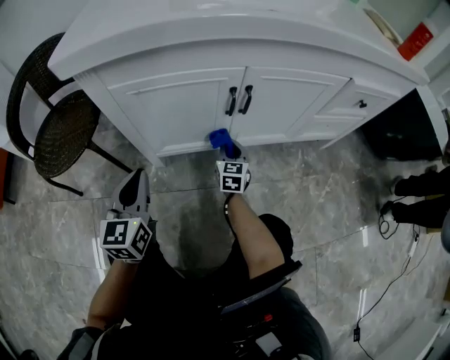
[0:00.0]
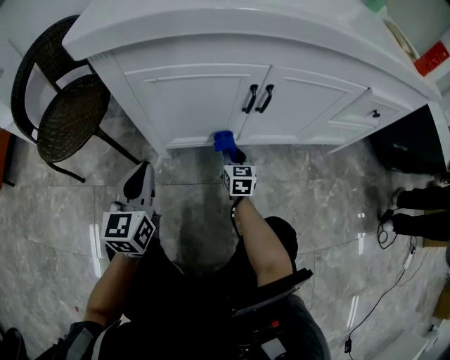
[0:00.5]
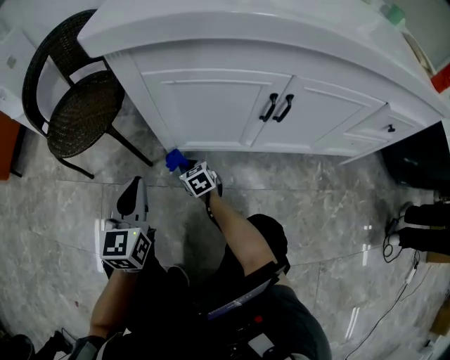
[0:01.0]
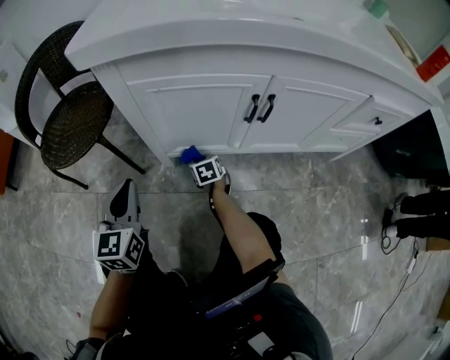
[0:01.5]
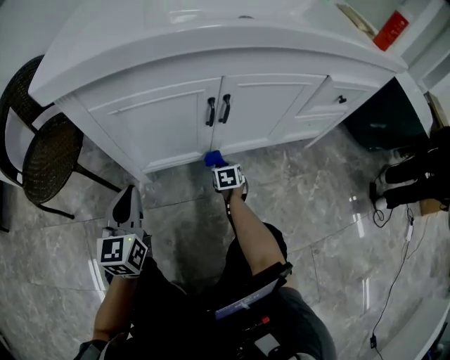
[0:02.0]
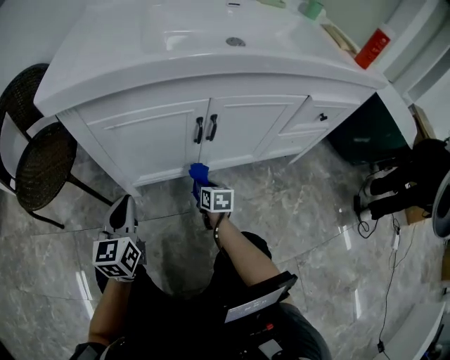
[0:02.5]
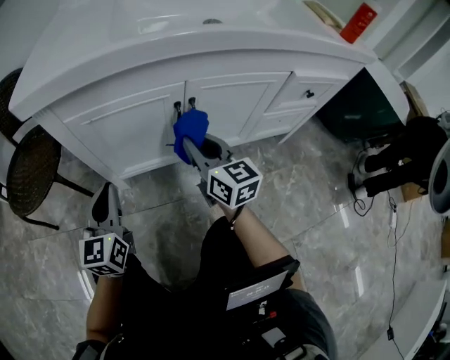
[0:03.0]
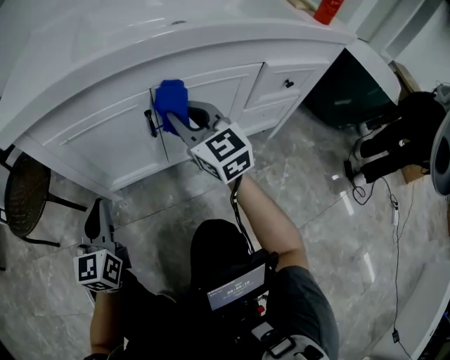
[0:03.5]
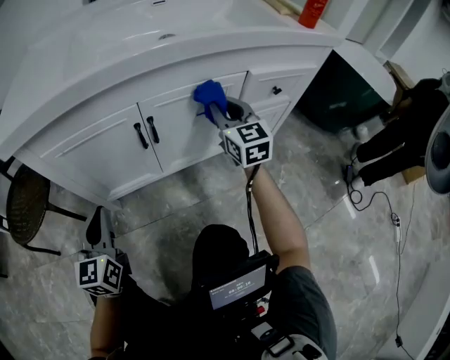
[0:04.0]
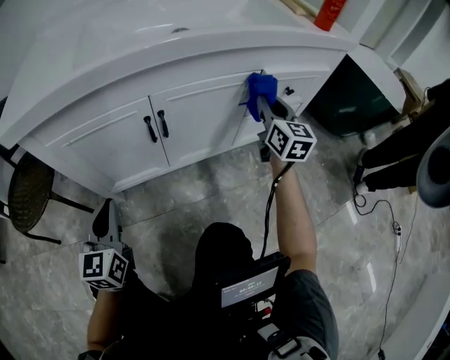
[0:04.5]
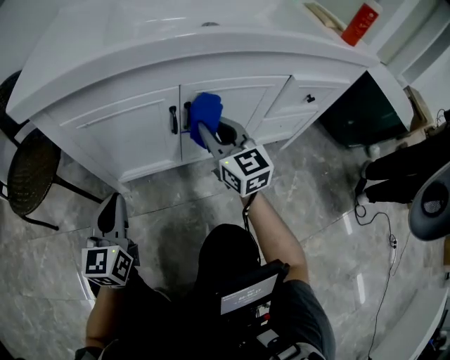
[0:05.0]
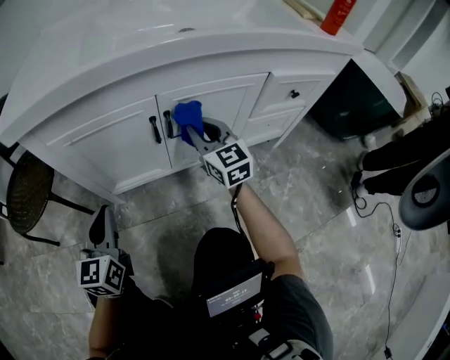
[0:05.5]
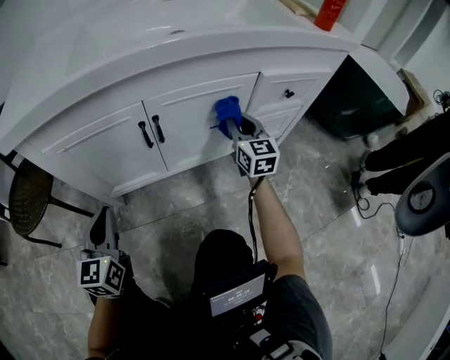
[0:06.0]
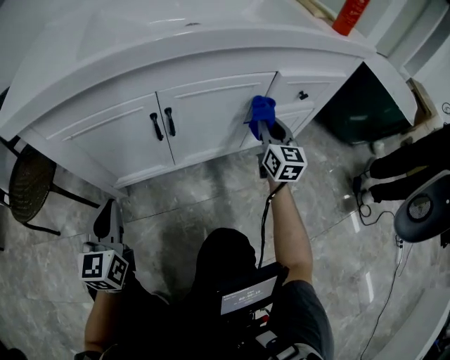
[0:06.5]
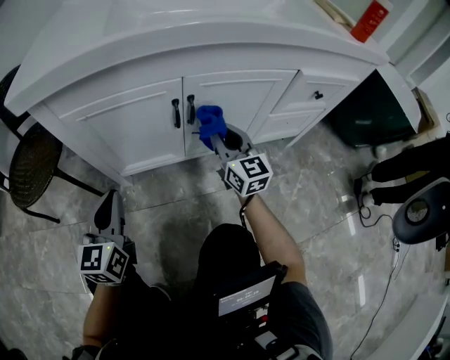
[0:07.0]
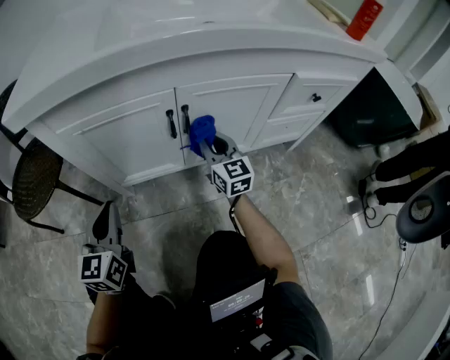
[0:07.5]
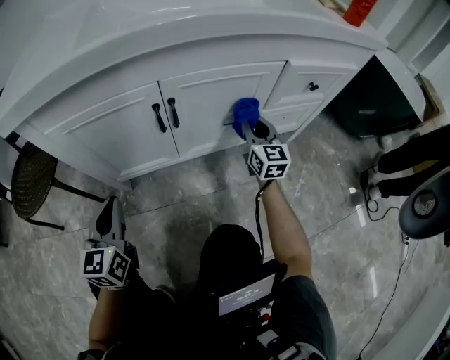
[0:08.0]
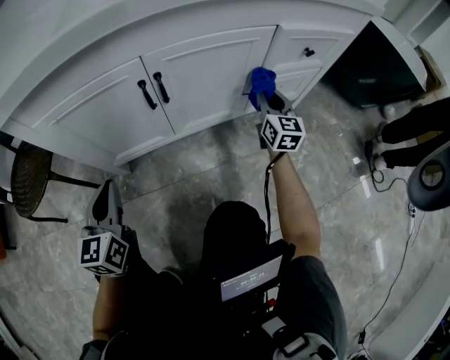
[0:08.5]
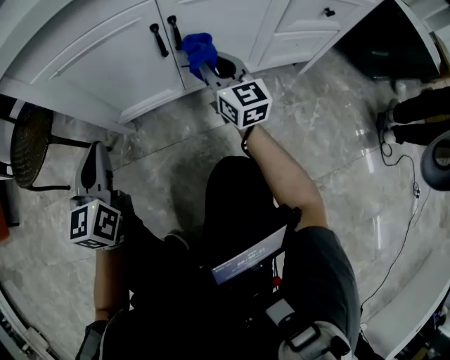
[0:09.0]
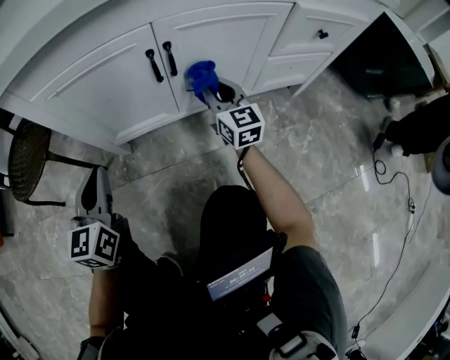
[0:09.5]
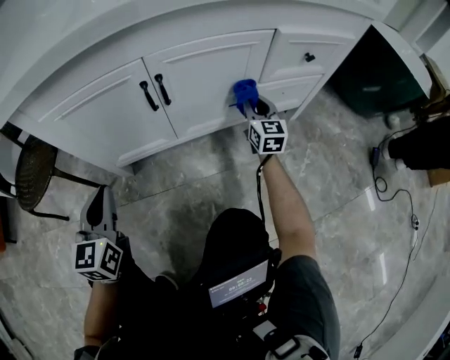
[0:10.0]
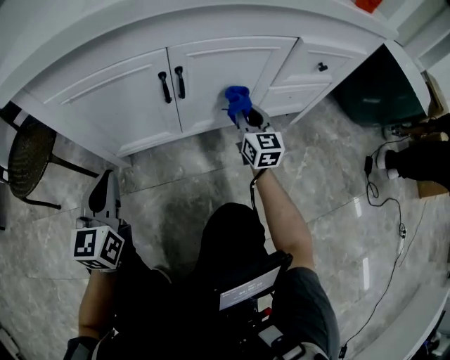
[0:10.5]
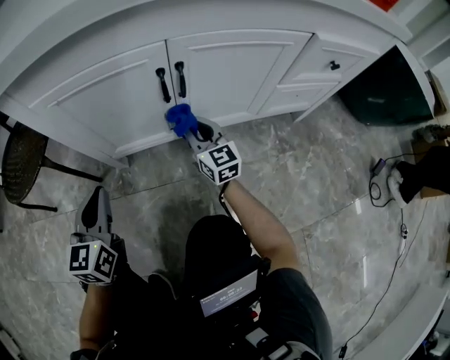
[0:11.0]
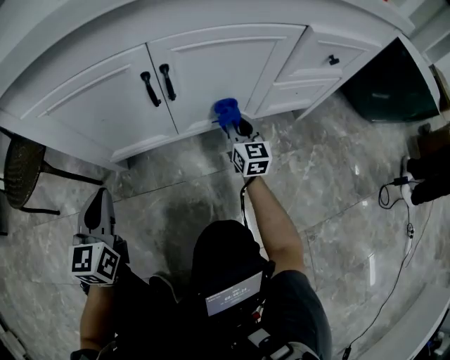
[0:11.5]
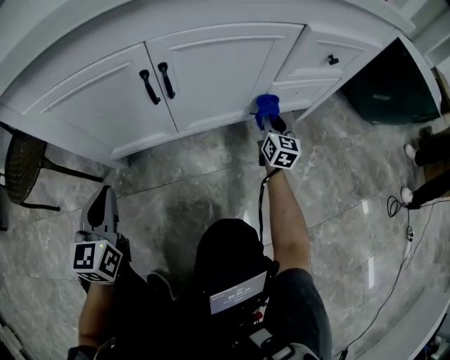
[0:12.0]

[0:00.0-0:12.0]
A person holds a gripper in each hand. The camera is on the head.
0:00.0 to 0:02.0: The right gripper goes some 10 cm downward, and changes its angle by approximately 30 degrees.
0:02.0 to 0:04.0: The right gripper goes roughly 40 cm upward and to the right, and points its fingers some 50 degrees further upward. The left gripper shifts roughly 5 cm to the right.
0:04.0 to 0:06.0: The right gripper goes left and right, roughly 25 cm each way, reversing 2 times.
0:06.0 to 0:08.0: The right gripper goes left and right, roughly 25 cm each way, reversing 2 times.
0:08.0 to 0:10.0: The right gripper swings left and right, some 25 cm each way, with 2 reversals.
0:10.0 to 0:12.0: The left gripper shifts approximately 5 cm downward; the right gripper travels downward by approximately 10 cm, and reaches some 25 cm to the left, then returns.

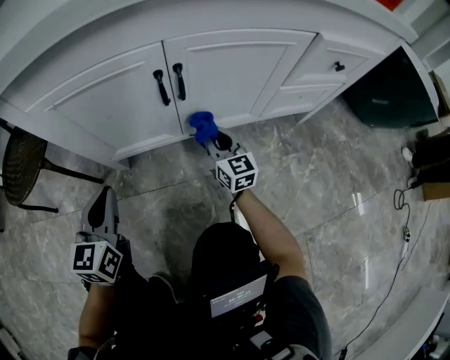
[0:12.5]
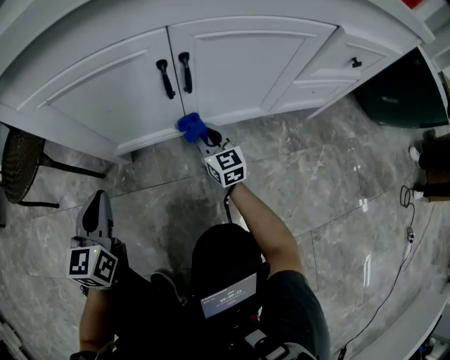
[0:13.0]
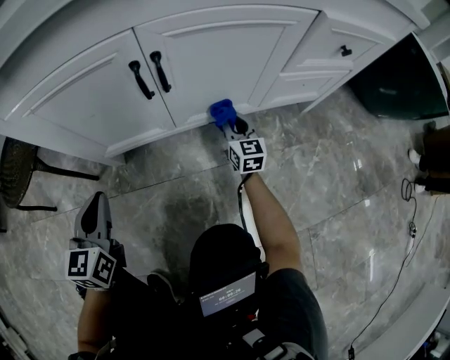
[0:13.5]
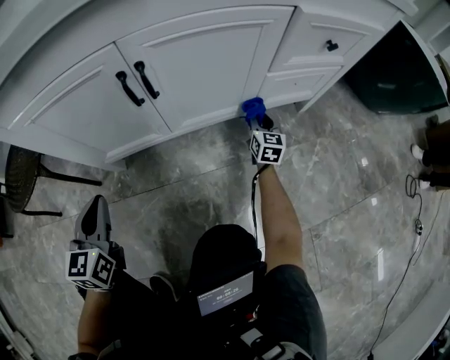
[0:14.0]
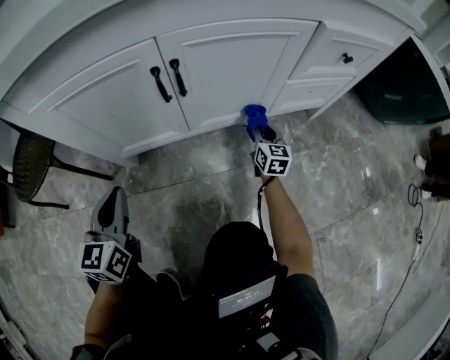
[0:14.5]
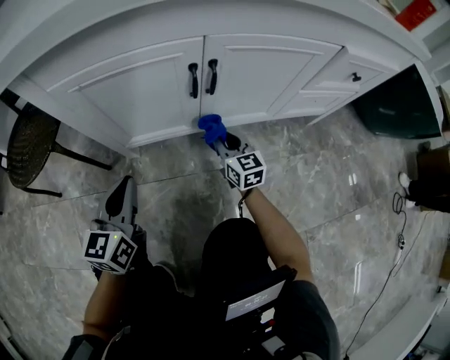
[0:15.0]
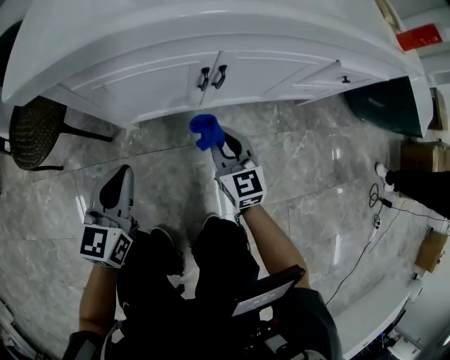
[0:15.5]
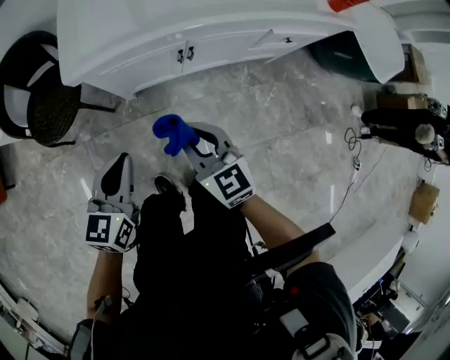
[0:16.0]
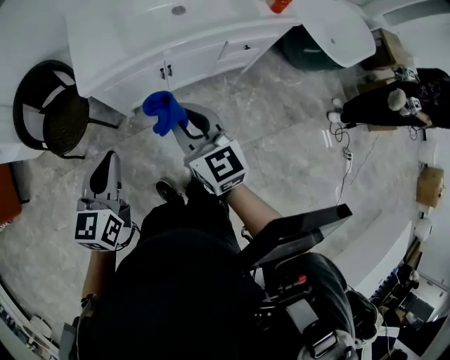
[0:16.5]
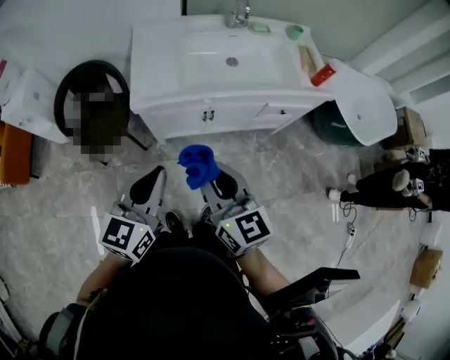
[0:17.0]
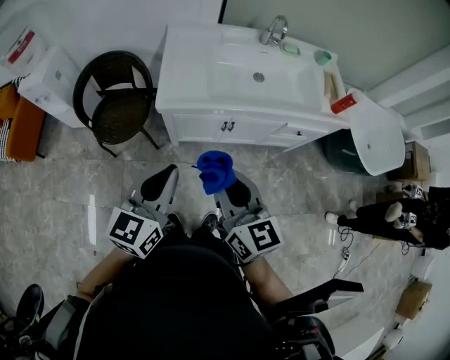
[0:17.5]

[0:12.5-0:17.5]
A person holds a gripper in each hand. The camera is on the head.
0:12.5 to 0:15.0: The right gripper moves left and right over some 25 cm, changing direction 2 times.
0:15.0 to 0:17.5: The grippers both shift upward by about 70 cm.

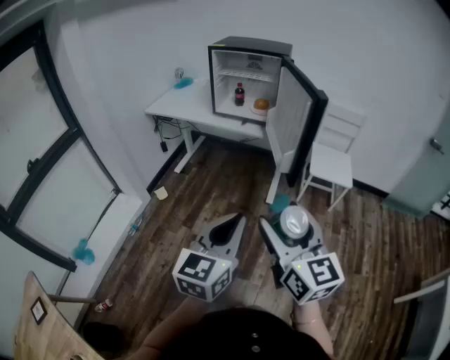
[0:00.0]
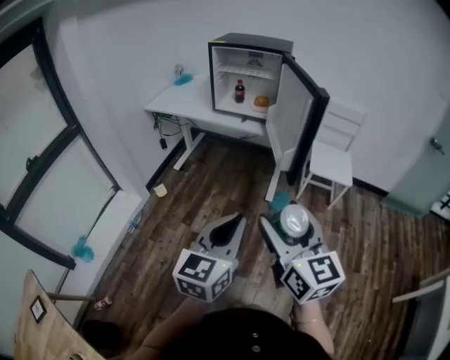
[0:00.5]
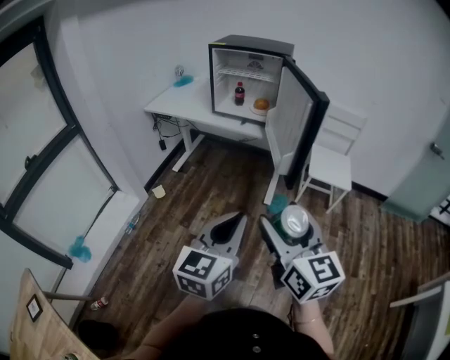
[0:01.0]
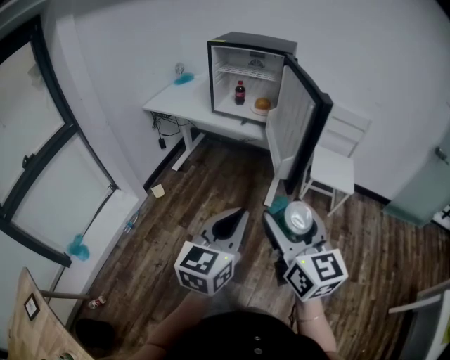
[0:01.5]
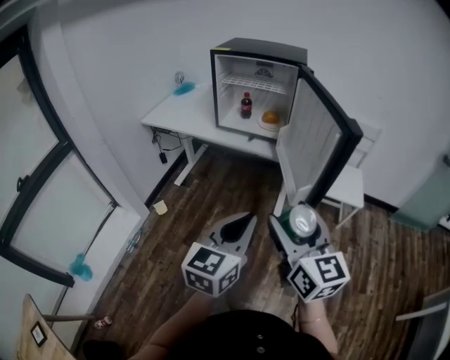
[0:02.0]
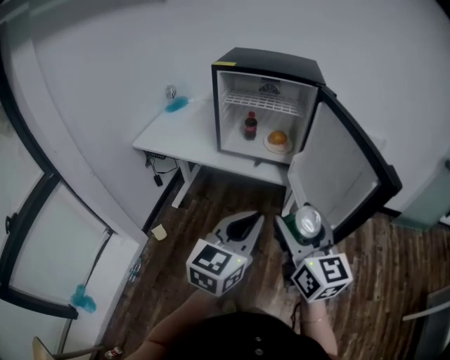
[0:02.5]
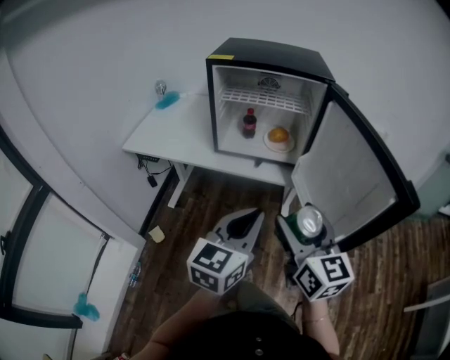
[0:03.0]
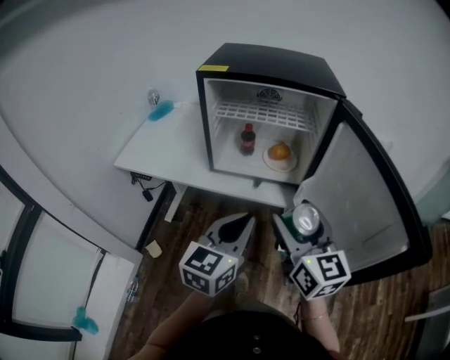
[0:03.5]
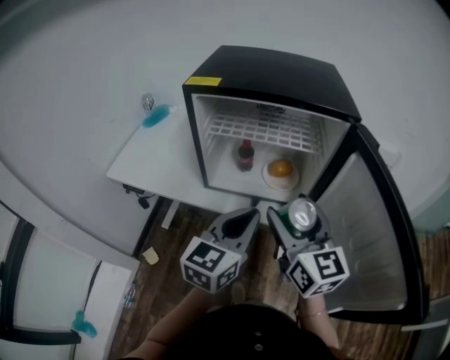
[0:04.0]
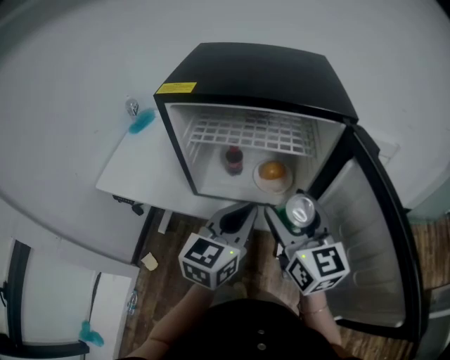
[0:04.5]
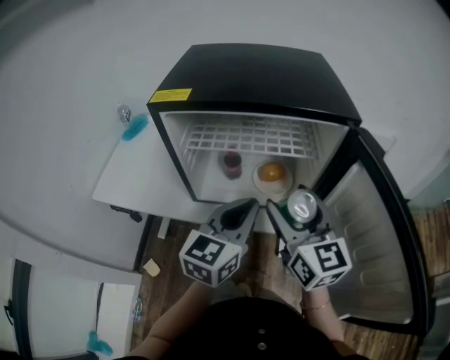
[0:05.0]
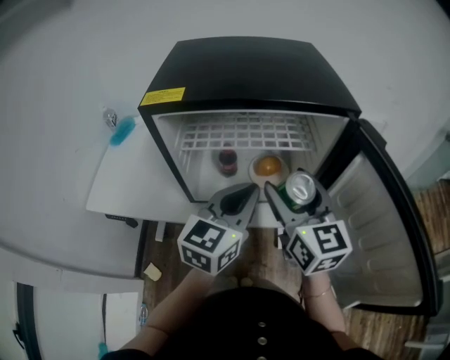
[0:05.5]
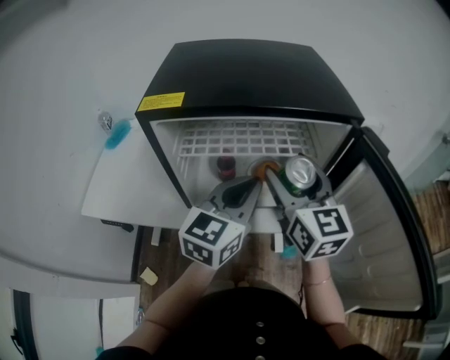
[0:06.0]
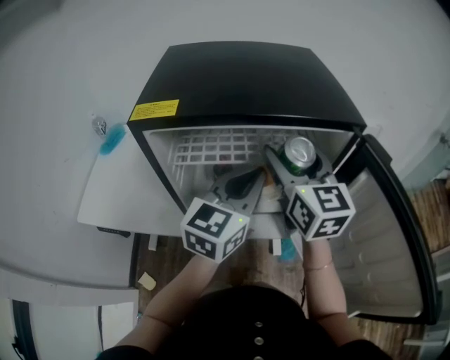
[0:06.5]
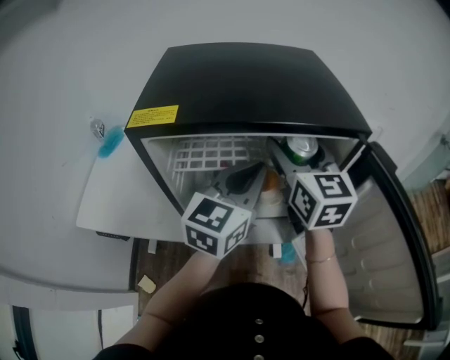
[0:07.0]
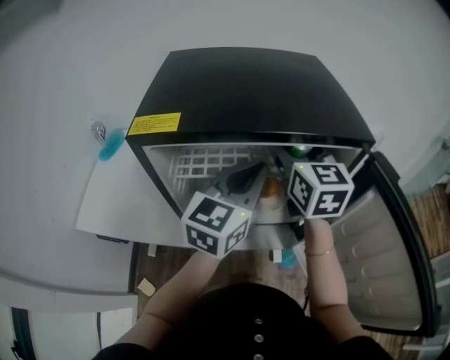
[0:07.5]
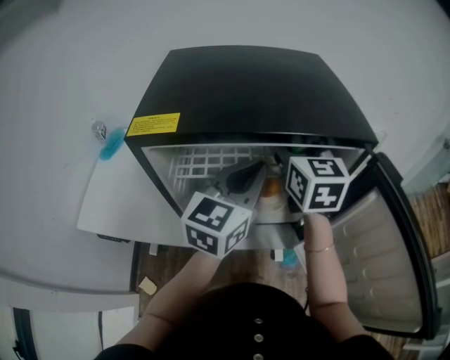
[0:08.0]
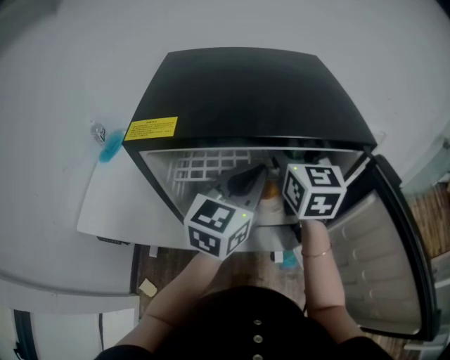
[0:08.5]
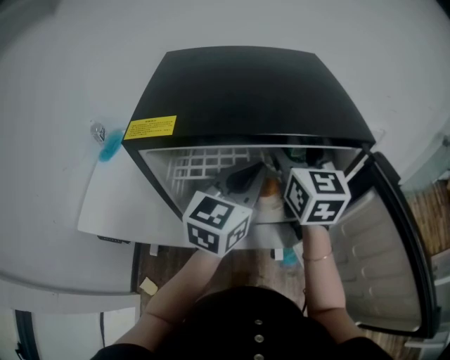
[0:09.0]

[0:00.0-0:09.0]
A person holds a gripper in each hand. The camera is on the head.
0:00.0 to 0:02.0: Both grippers travel together forward, about 20 cm.
0:02.0 to 0:04.5: Both grippers are carried forward, about 50 cm.
0:04.5 to 0:07.0: The left gripper shifts about 15 cm forward and upward, while the right gripper travels forward by approximately 20 cm.
0:07.0 to 0:09.0: The grippers move only a little.

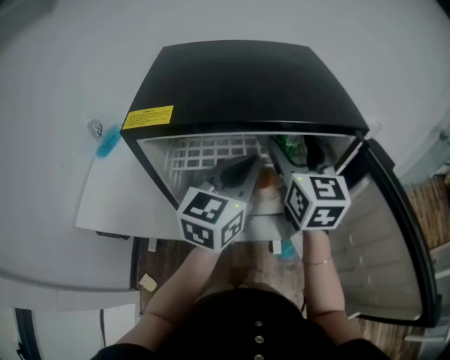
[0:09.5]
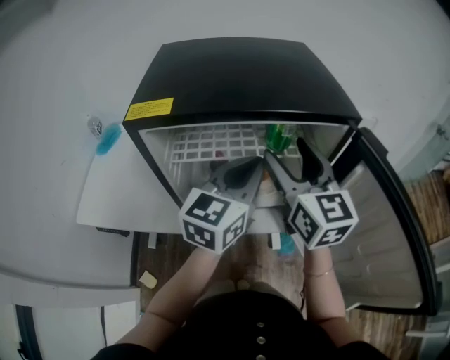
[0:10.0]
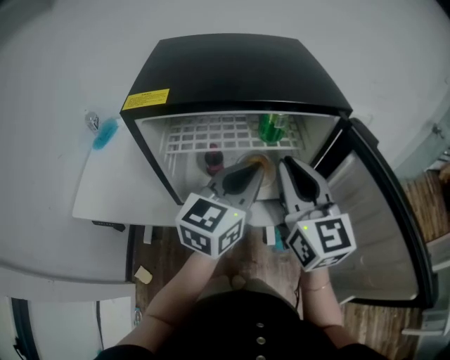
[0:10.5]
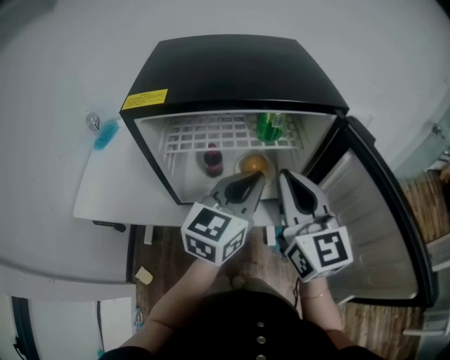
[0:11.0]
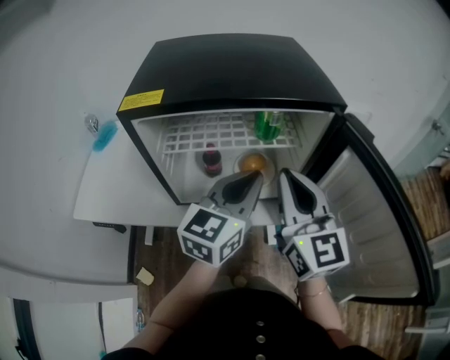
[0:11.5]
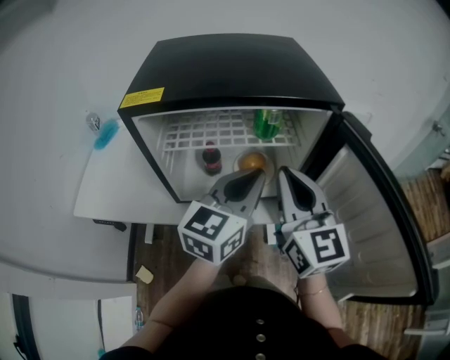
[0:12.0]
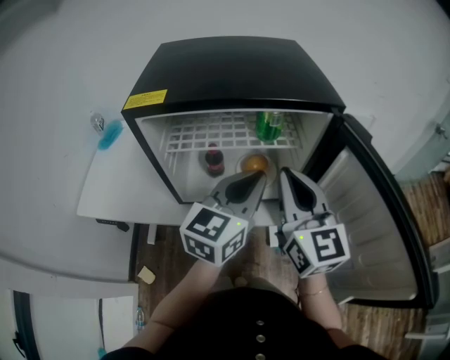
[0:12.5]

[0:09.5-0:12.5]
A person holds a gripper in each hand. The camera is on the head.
0:09.5 to 0:11.0: The right gripper travels backward by roughly 15 cm, and closes up. Meanwhile the left gripper is displaced backward by some 5 cm.
0:11.0 to 0:12.5: The grippers move only a little.
